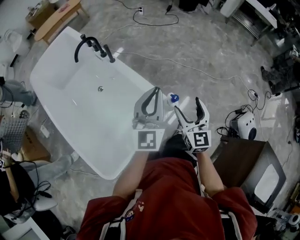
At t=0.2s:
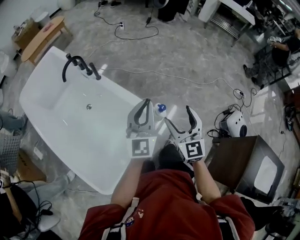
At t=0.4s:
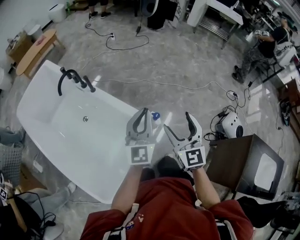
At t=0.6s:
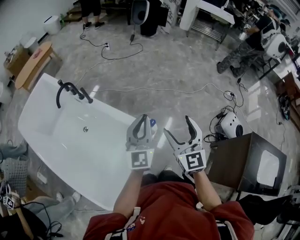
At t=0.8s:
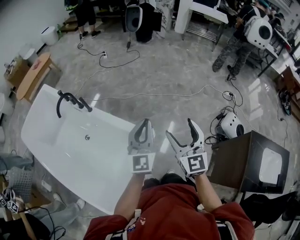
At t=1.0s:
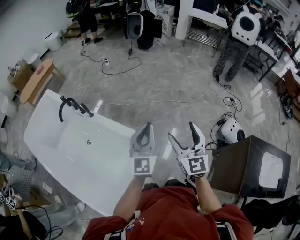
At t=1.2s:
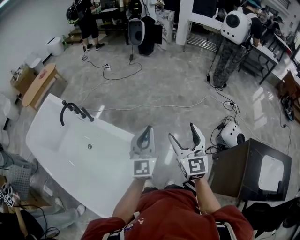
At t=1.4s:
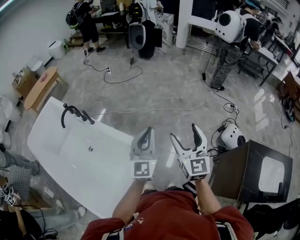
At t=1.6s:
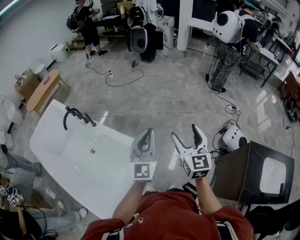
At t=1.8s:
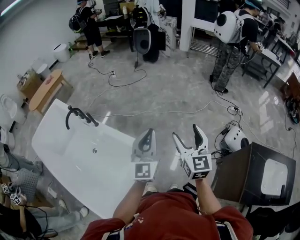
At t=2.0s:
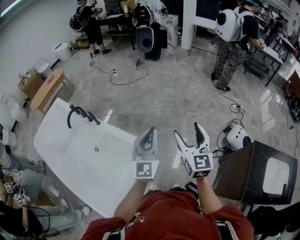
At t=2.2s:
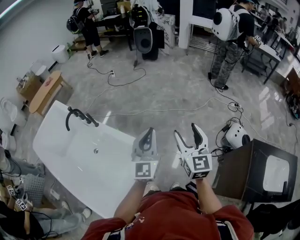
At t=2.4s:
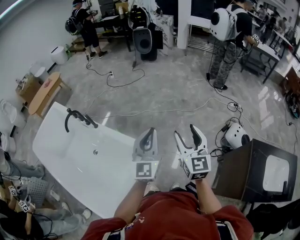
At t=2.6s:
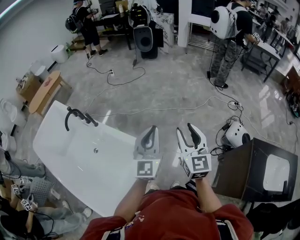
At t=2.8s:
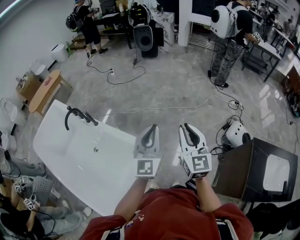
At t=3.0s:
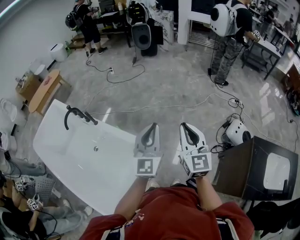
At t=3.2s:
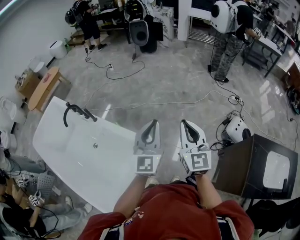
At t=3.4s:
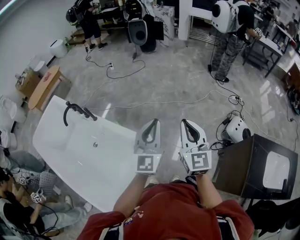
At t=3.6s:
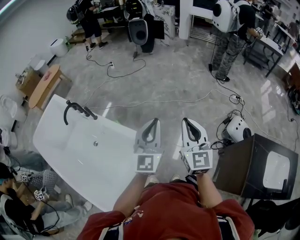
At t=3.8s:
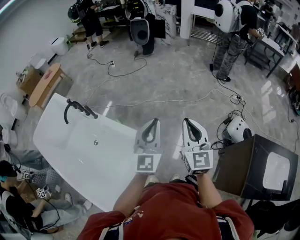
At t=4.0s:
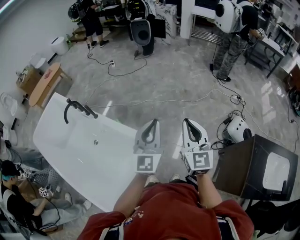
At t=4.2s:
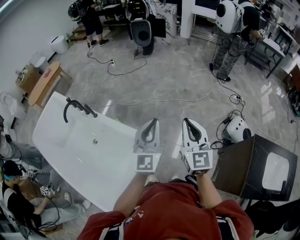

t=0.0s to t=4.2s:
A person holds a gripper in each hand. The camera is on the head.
t=0.0s to t=1.4s: The left gripper is displaced to the right by some 15 cm, while the right gripper heads upward and to the right, covering roughly 20 cm.
t=1.4s to t=2.8s: The right gripper closes.
t=2.8s to t=4.2s: The grippers stay close to where they were, moving slightly.

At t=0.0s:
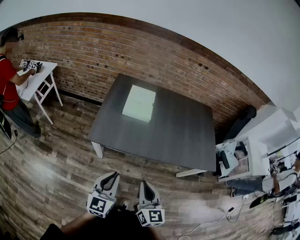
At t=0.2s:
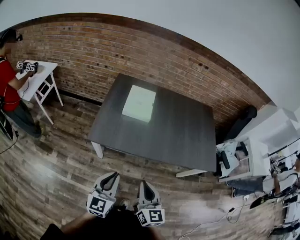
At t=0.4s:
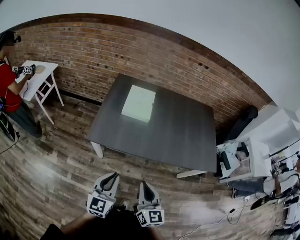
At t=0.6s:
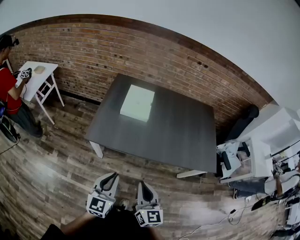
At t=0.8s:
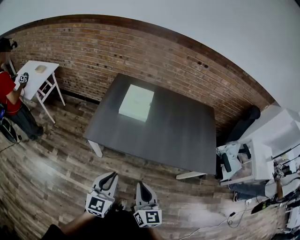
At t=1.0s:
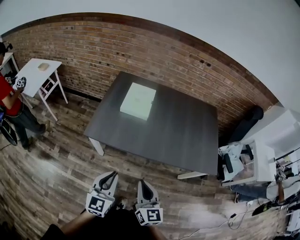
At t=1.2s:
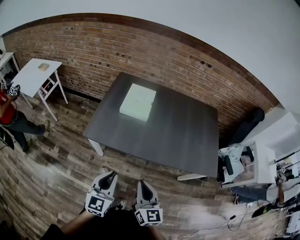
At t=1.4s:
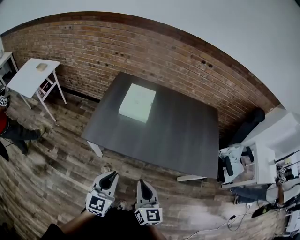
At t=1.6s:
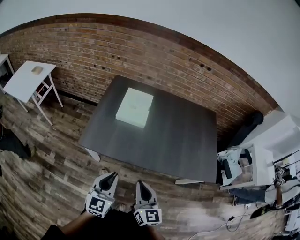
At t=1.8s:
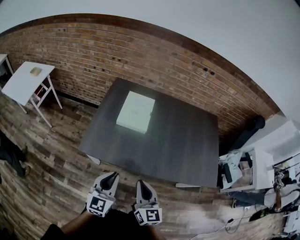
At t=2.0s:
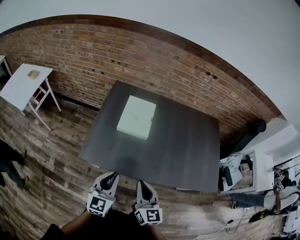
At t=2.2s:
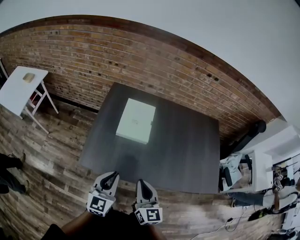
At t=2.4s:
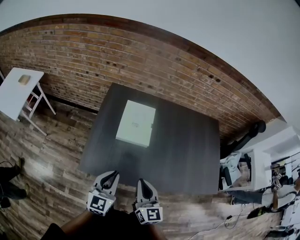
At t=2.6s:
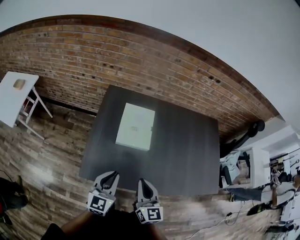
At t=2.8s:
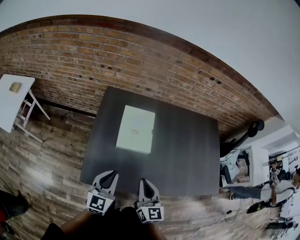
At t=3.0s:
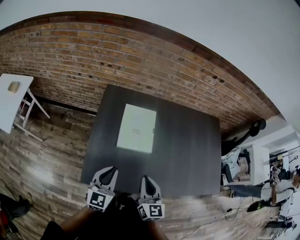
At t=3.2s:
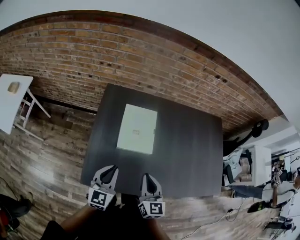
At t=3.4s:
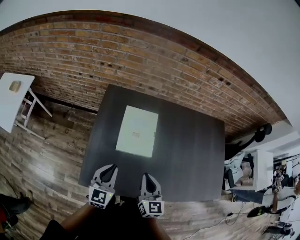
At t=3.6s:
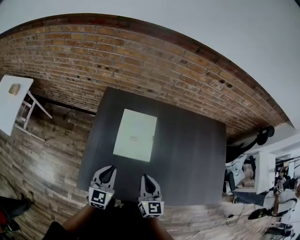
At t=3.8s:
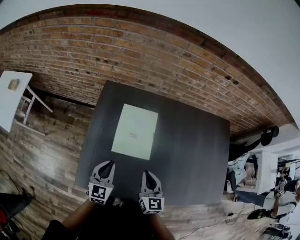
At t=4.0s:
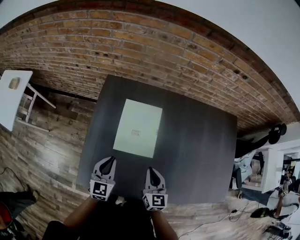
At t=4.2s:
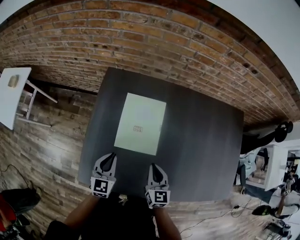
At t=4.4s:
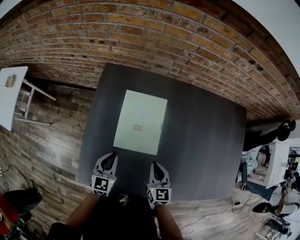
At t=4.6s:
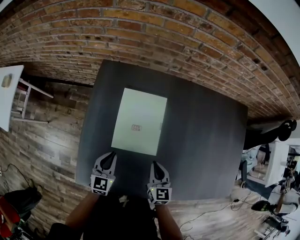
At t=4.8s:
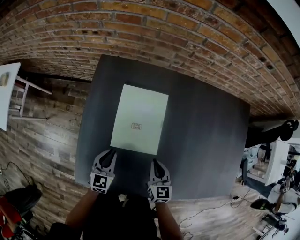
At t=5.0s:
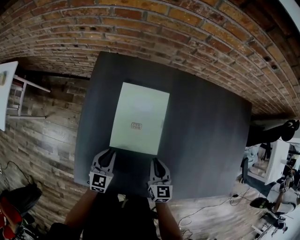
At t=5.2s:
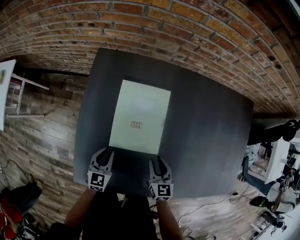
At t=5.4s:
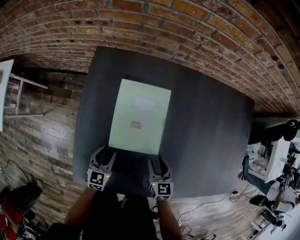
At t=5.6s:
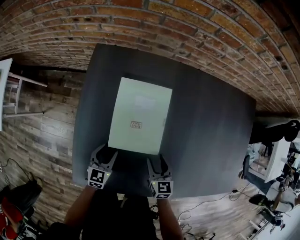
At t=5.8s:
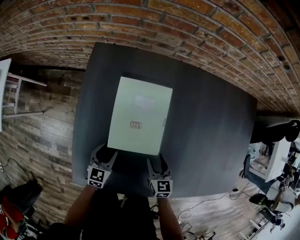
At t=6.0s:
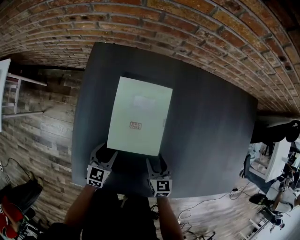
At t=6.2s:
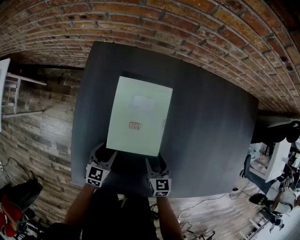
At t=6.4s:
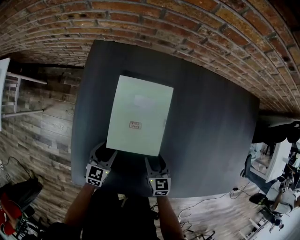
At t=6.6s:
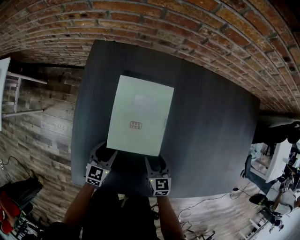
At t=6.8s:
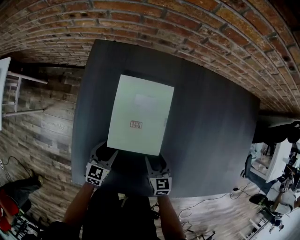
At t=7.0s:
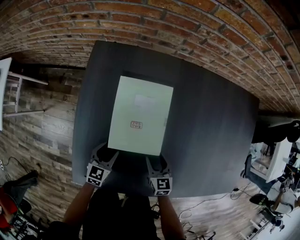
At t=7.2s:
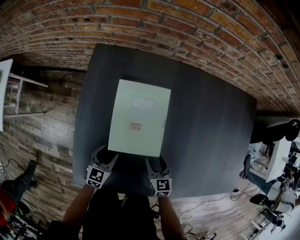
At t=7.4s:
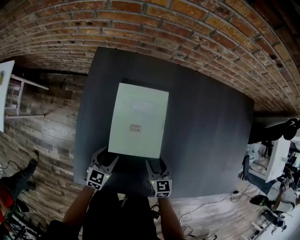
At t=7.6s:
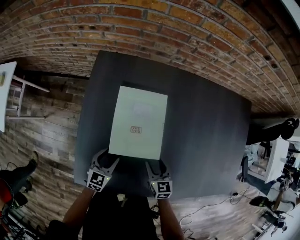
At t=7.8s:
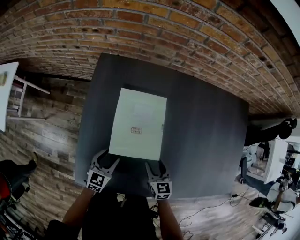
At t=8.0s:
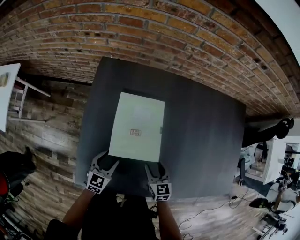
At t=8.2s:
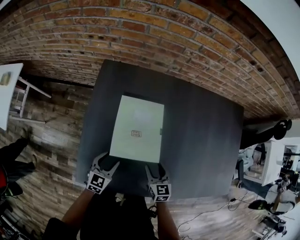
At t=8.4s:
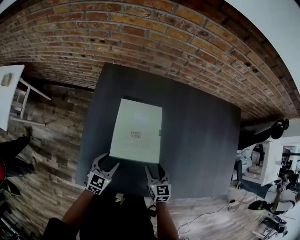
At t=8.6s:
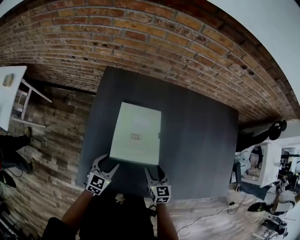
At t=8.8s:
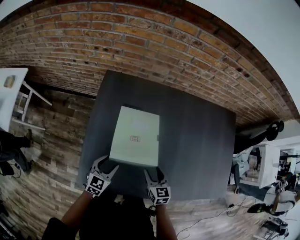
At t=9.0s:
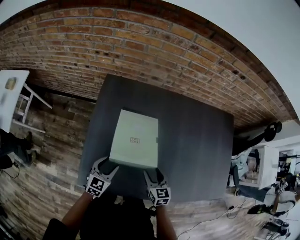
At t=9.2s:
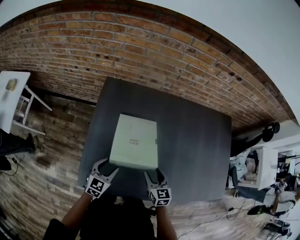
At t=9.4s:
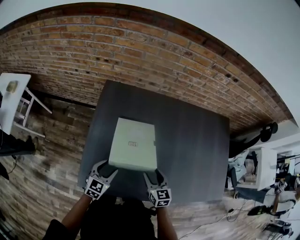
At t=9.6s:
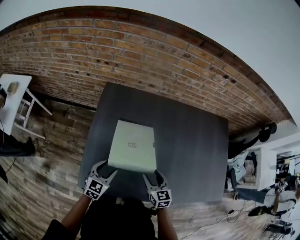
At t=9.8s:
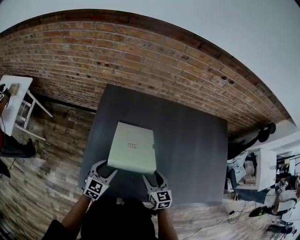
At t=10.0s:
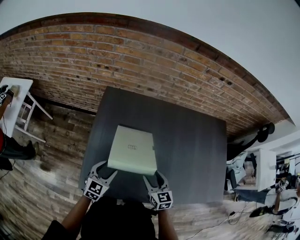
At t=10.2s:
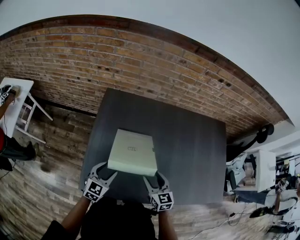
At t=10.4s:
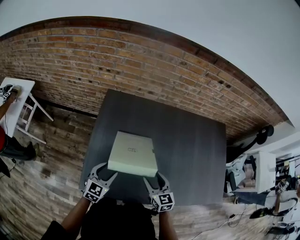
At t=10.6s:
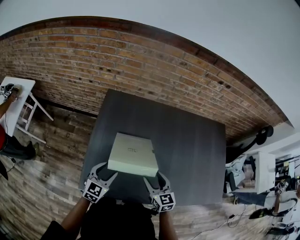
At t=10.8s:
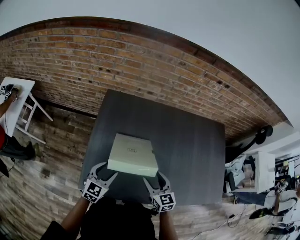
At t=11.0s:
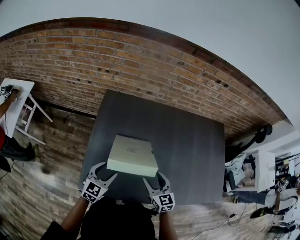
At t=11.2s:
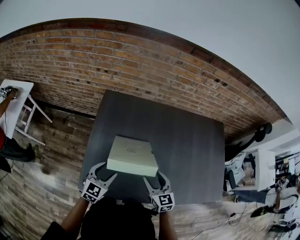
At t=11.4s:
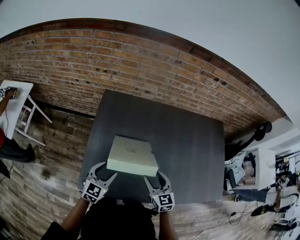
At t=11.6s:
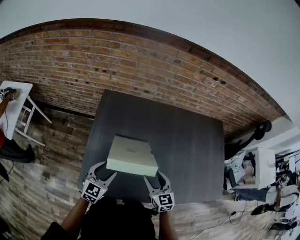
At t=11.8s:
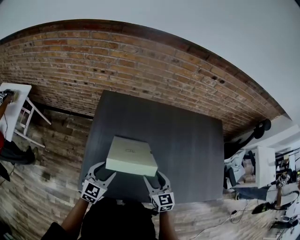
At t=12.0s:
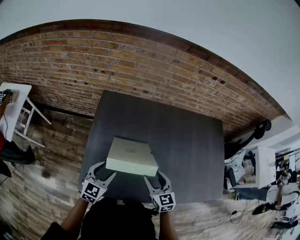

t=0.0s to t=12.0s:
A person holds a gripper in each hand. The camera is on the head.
t=0.0s to t=1.6s: The grippers both shift forward and to the right by some 10 cm.
t=1.6s to t=3.0s: The left gripper is displaced forward and to the left by about 35 cm. Meanwhile the right gripper heads forward, covering about 30 cm.
t=3.0s to t=4.4s: The right gripper goes approximately 25 cm downward, forward and to the right, while the left gripper travels downward and forward by roughly 20 cm.
t=4.4s to t=6.0s: The grippers both shift downward by approximately 15 cm. The left gripper opens up. The right gripper opens.
t=6.0s to t=7.6s: There are only small adjustments of the grippers.
t=7.6s to t=9.0s: Both grippers travel together upward, about 10 cm.
t=9.0s to t=10.4s: Both grippers move upward, about 5 cm.
t=10.4s to t=12.0s: There are only small adjustments of the grippers.

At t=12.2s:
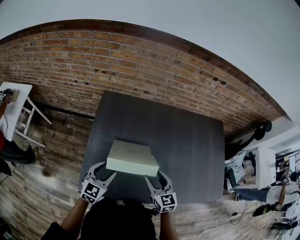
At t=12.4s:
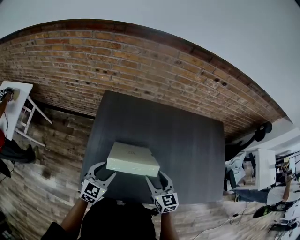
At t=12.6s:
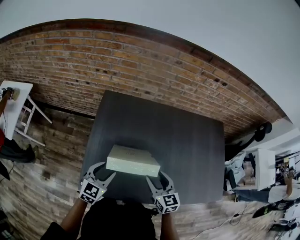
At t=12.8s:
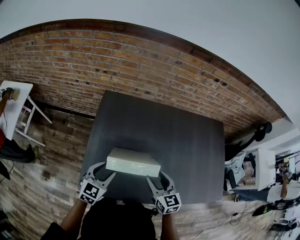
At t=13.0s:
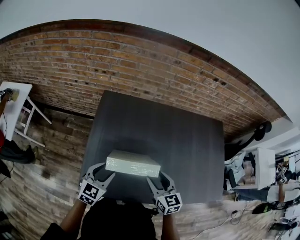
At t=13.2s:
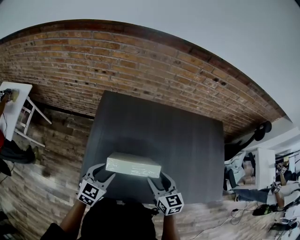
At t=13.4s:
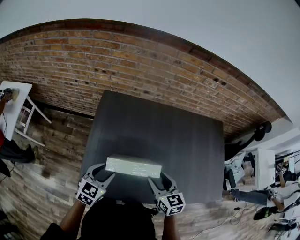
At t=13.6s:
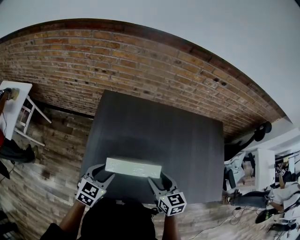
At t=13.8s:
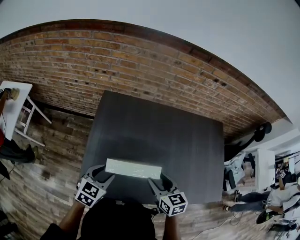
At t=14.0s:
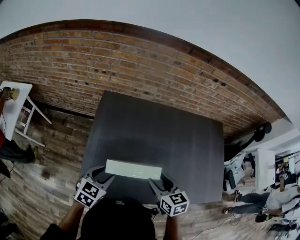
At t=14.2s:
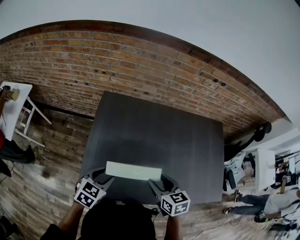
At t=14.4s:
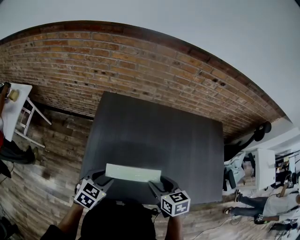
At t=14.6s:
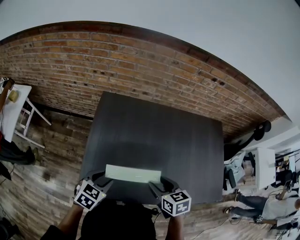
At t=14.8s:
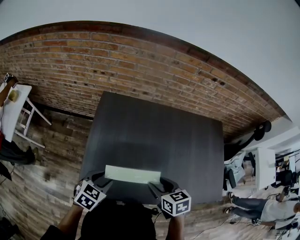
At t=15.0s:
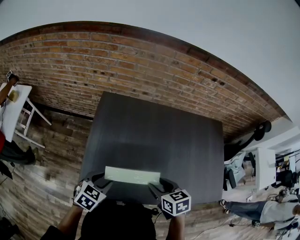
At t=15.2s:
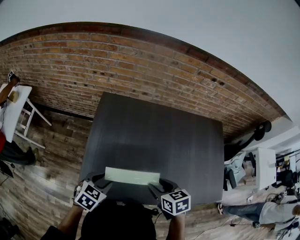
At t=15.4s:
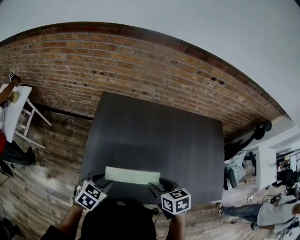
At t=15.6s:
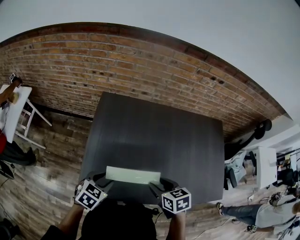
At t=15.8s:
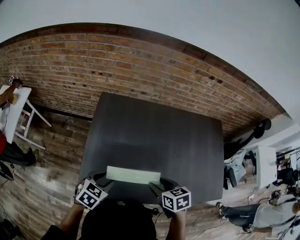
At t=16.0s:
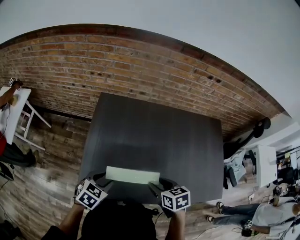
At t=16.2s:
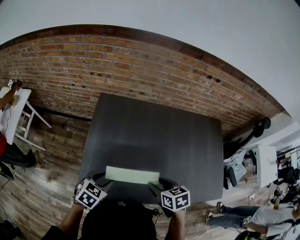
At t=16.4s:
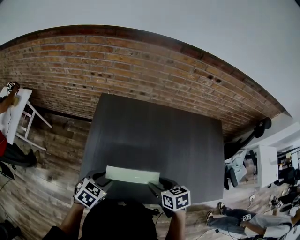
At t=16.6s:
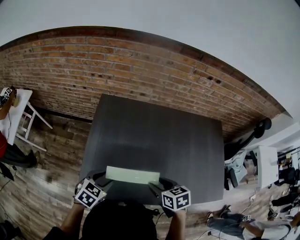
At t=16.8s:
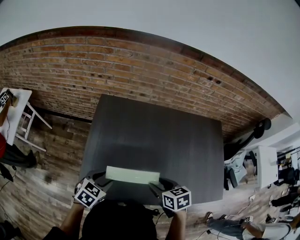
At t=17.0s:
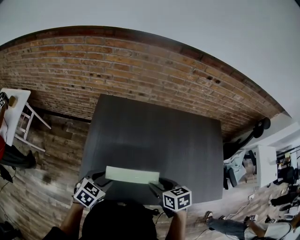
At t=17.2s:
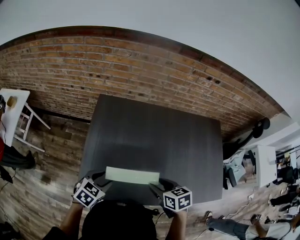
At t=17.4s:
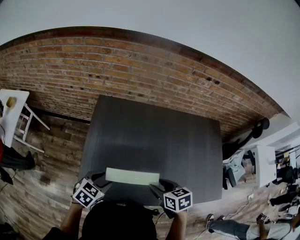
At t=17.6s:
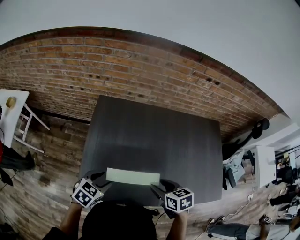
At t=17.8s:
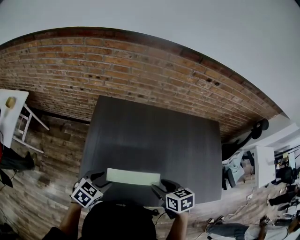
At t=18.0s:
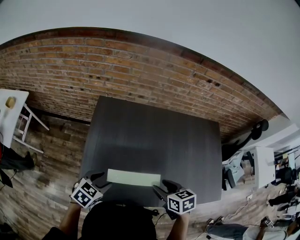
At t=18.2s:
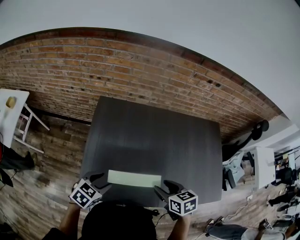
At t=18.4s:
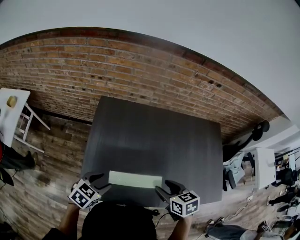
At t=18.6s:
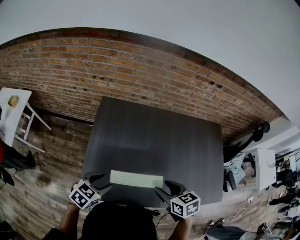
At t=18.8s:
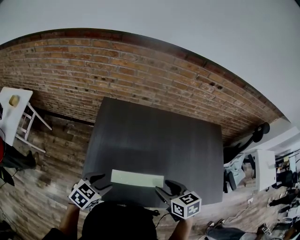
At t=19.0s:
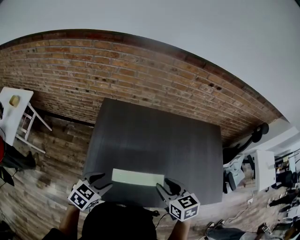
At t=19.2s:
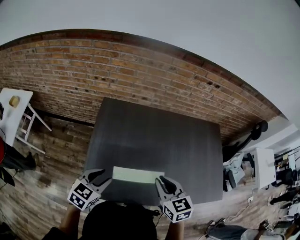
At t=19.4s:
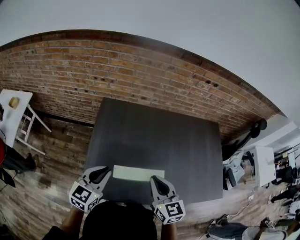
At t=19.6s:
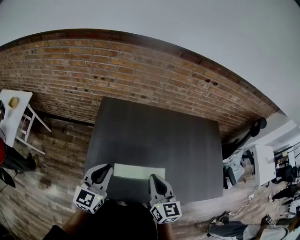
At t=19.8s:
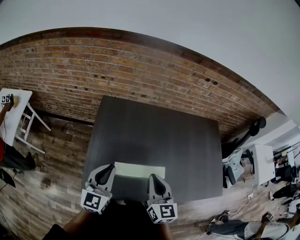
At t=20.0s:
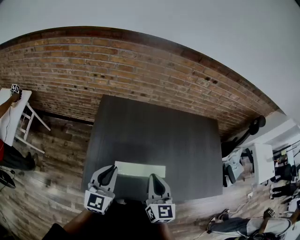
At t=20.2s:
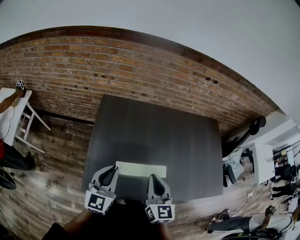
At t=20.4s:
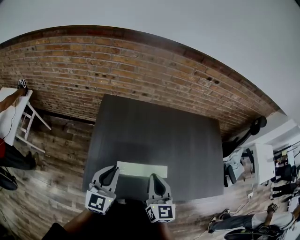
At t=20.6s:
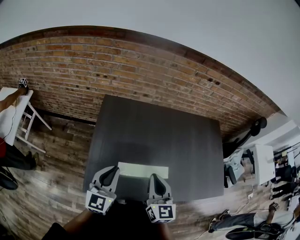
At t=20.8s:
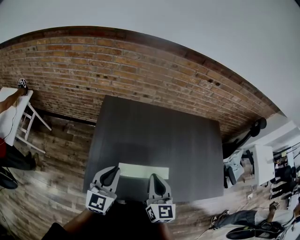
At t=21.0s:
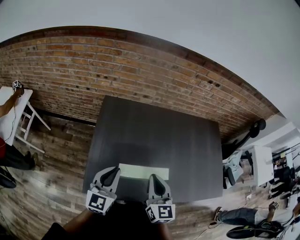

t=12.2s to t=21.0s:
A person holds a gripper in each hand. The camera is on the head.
t=12.2s to t=13.6s: The grippers stay close to where they were, moving slightly.
t=13.6s to t=15.2s: The right gripper changes its angle by approximately 20 degrees.
t=15.2s to t=18.0s: There are only small adjustments of the grippers.
t=18.0s to t=19.6s: The right gripper is displaced upward and to the left by approximately 10 cm, tips its fingers upward by about 30 degrees, and closes. Meanwhile the left gripper shifts some 10 cm upward, tilts its fingers approximately 40 degrees upward, and closes.
t=19.6s to t=21.0s: The grippers stay close to where they were, moving slightly.
